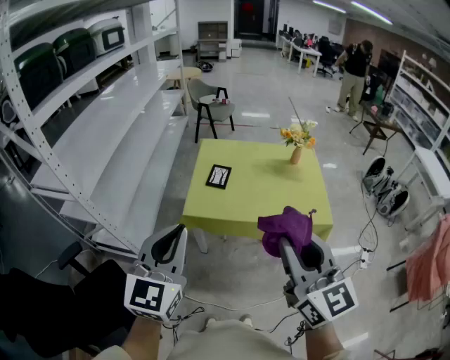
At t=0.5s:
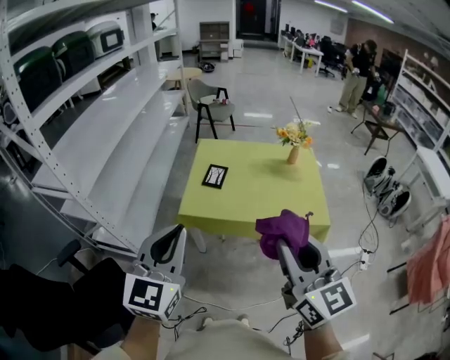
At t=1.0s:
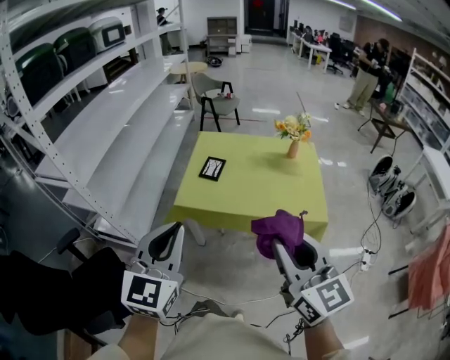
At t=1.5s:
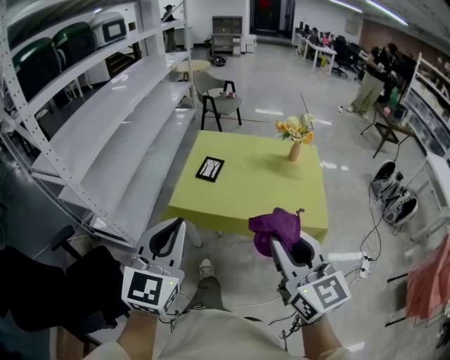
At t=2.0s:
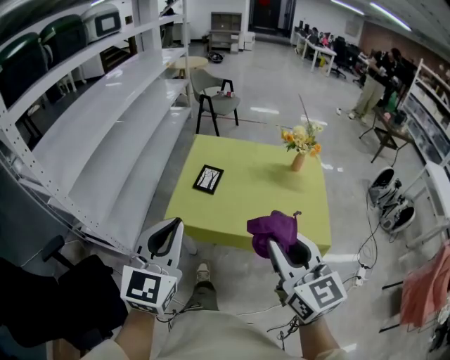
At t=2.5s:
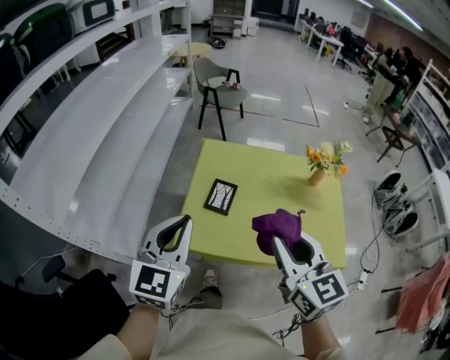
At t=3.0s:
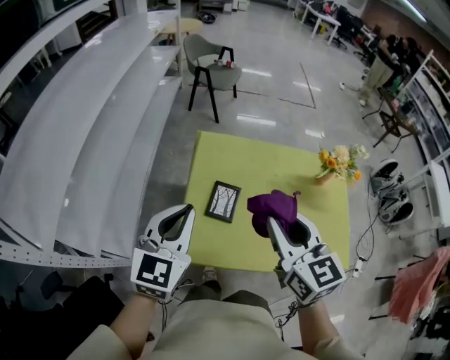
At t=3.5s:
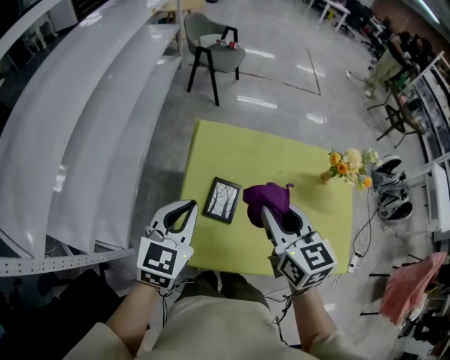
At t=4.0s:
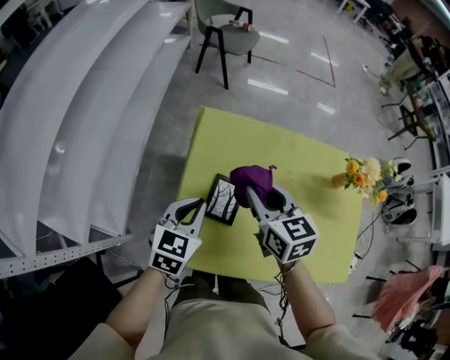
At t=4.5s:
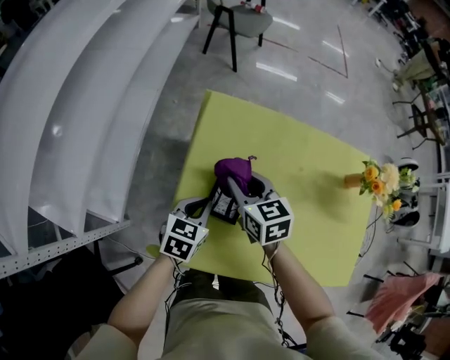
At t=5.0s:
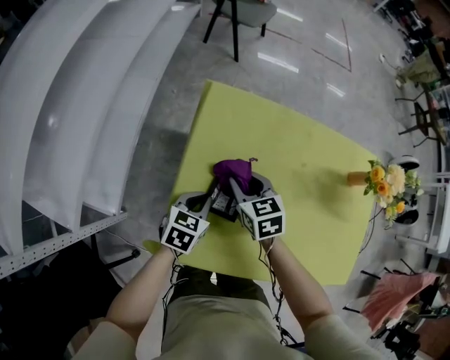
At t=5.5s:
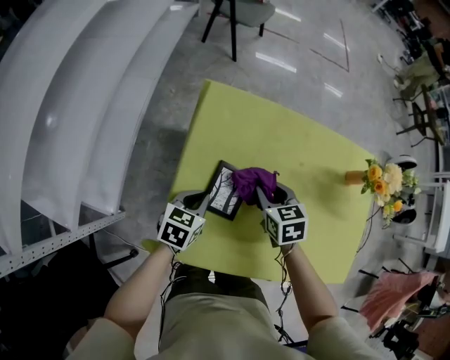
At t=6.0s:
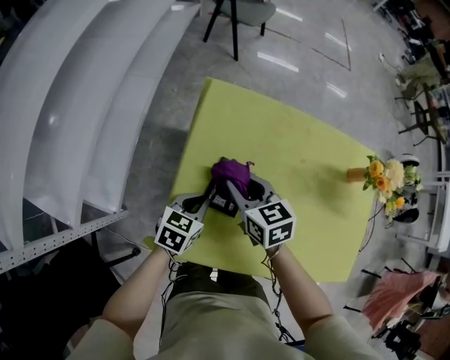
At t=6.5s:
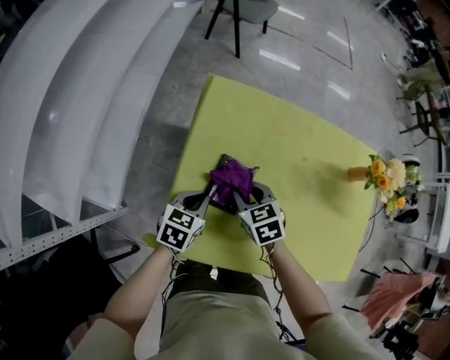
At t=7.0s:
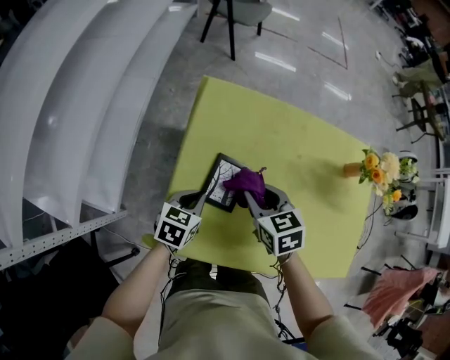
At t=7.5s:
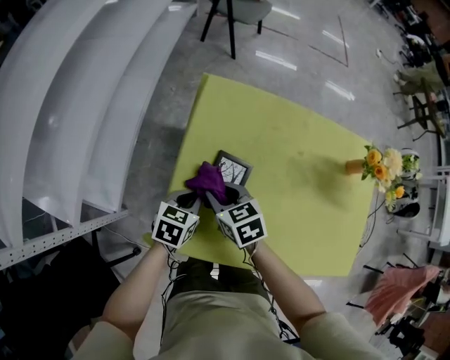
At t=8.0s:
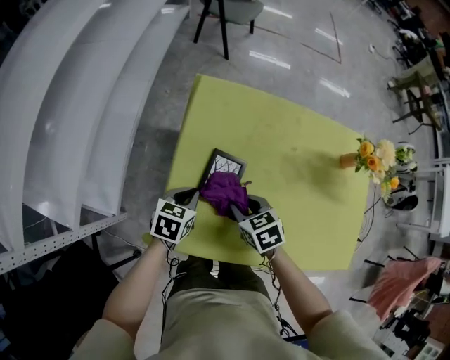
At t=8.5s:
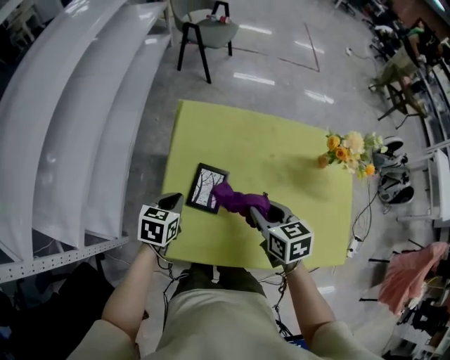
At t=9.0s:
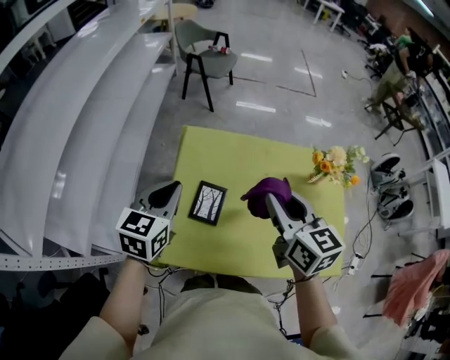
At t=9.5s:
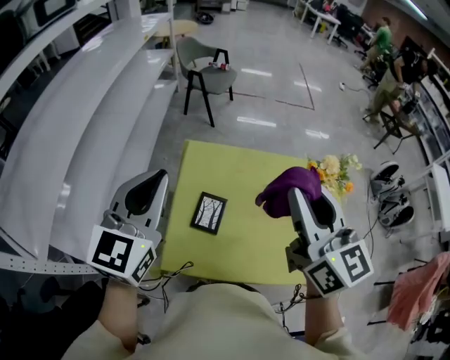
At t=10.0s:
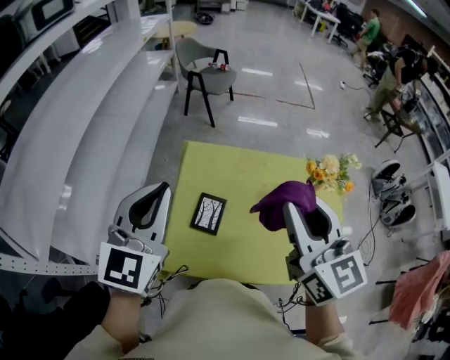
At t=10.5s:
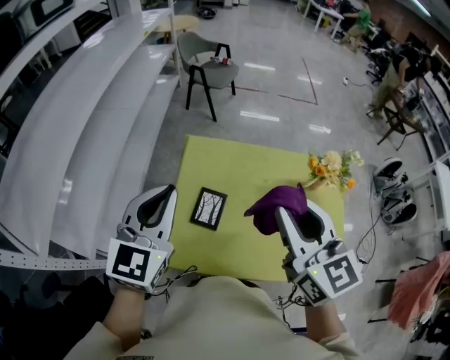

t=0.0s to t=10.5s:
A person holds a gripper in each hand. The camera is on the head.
t=0.0s to t=2.0s: The right gripper goes approximately 15 cm forward, downward and to the right. The left gripper goes approximately 15 cm forward, to the right and downward.
t=2.0s to t=4.0s: The pair of grippers is taken forward, about 50 cm. The grippers both shift downward by about 25 cm. The right gripper swivels about 20 degrees. Meanwhile the left gripper rotates roughly 30 degrees.
t=4.0s to t=6.5s: The right gripper moves up and down over approximately 20 cm, changing direction 2 times, and rotates about 30 degrees; the left gripper shifts about 15 cm downward.
t=6.5s to t=8.5s: The right gripper is displaced upward, to the right and backward by some 15 cm, and turns by about 20 degrees; the left gripper is displaced upward by roughly 5 cm.
t=8.5s to t=10.5s: Both grippers travel together upward, approximately 35 cm. The left gripper angles its fingers upward, by some 40 degrees. The right gripper tips its fingers upward by approximately 30 degrees.

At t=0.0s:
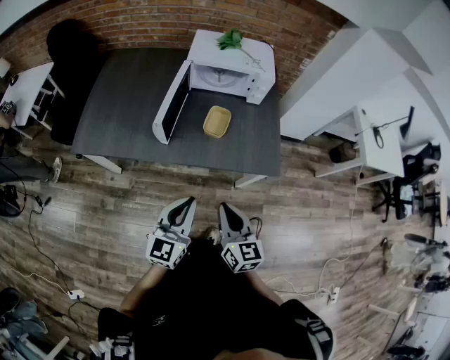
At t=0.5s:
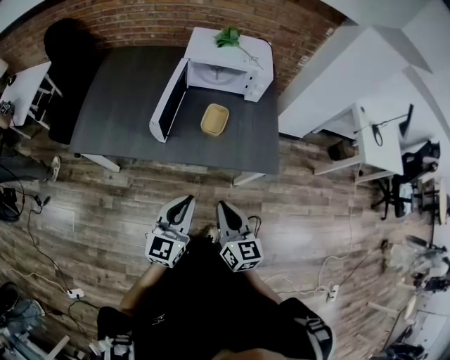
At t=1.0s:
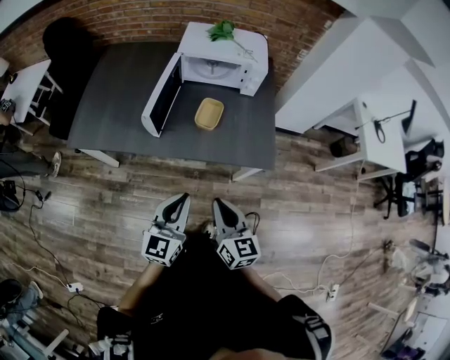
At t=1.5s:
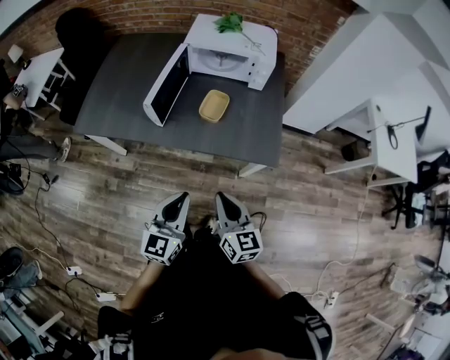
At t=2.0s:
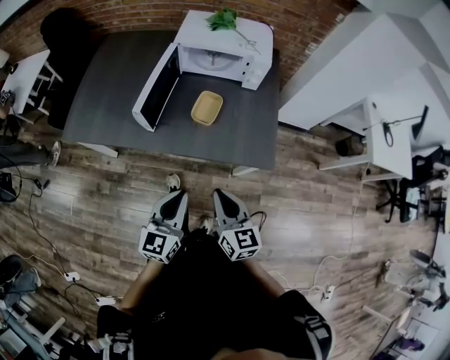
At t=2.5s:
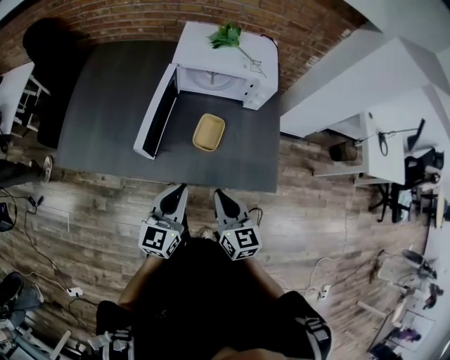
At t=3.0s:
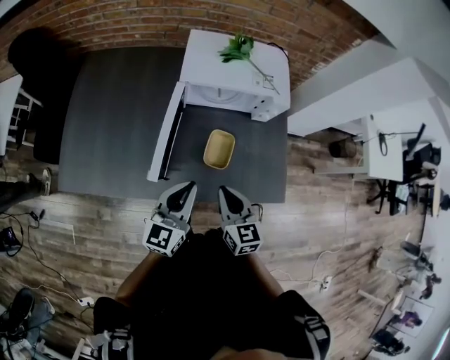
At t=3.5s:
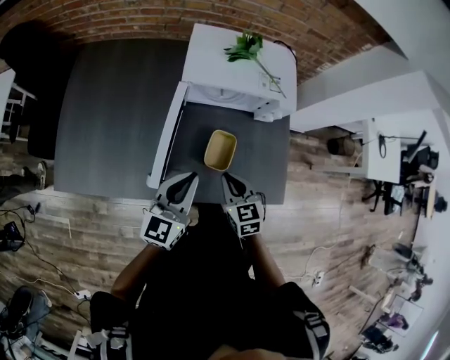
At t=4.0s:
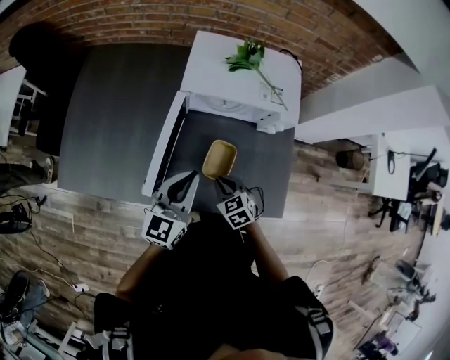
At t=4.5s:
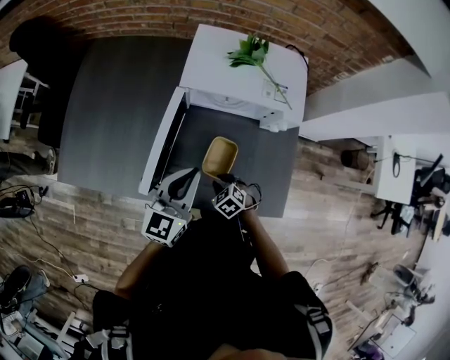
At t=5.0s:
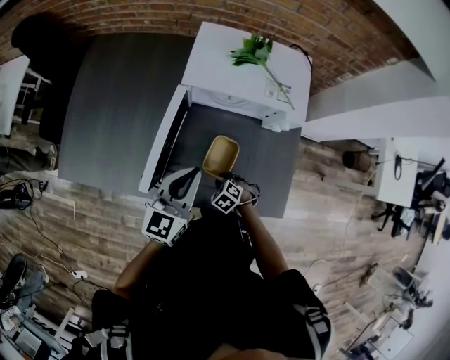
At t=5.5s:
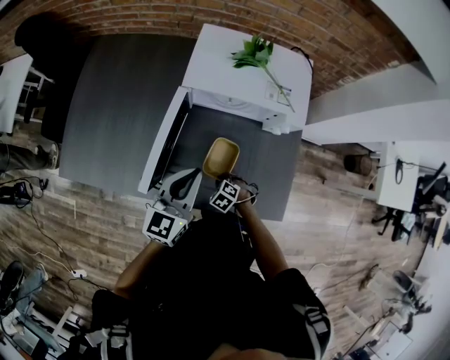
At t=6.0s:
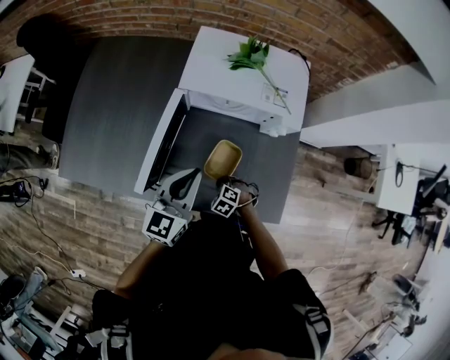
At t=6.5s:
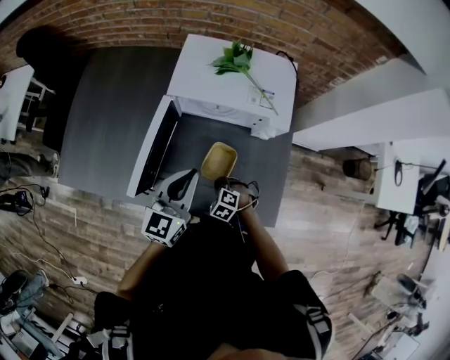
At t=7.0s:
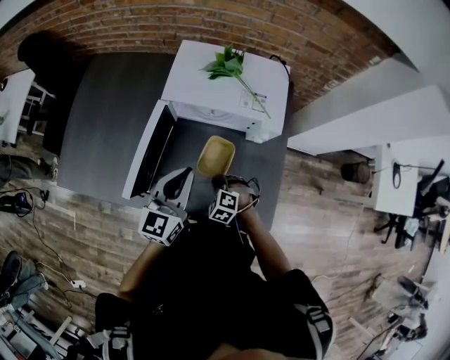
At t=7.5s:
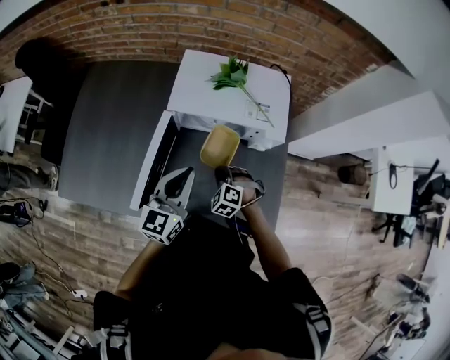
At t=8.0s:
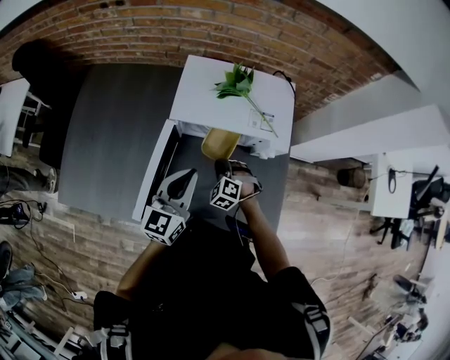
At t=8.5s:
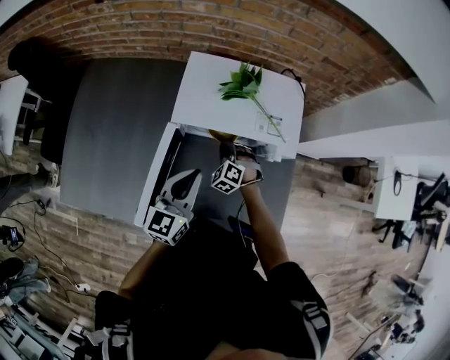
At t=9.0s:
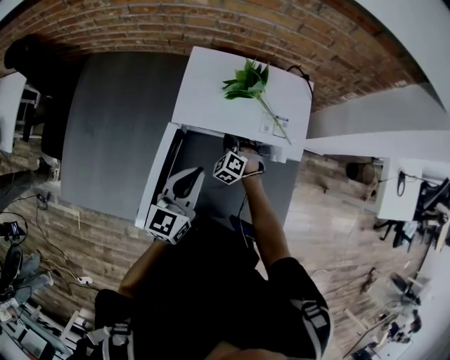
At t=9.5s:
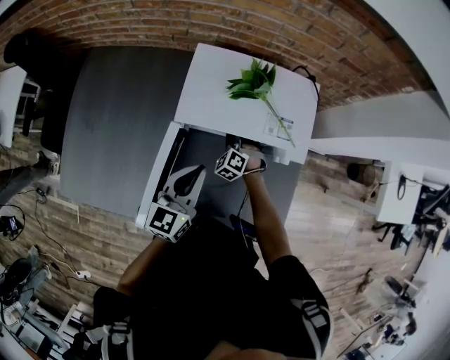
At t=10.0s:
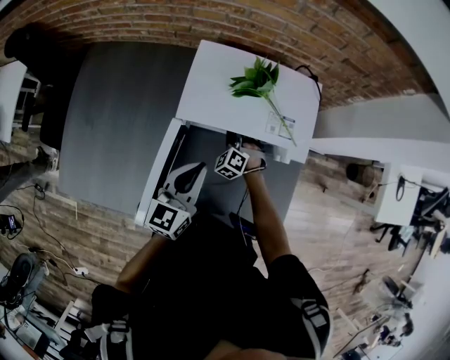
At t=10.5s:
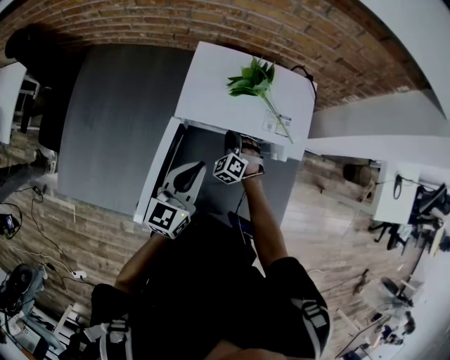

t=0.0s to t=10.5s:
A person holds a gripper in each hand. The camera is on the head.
t=0.0s to t=2.0s: Both grippers travel together to the right, approximately 5 cm.
t=2.0s to t=4.0s: The right gripper travels forward and downward by roughly 35 cm, and tips its fingers downward by about 40 degrees. The left gripper goes roughly 35 cm forward.
t=4.0s to t=6.5s: The left gripper moves roughly 5 cm. Meanwhile the right gripper is displaced downward by about 10 cm, and swivels about 40 degrees.
t=6.5s to t=8.5s: The right gripper shifts approximately 25 cm forward, and turns by roughly 20 degrees. The left gripper shifts about 10 cm forward.

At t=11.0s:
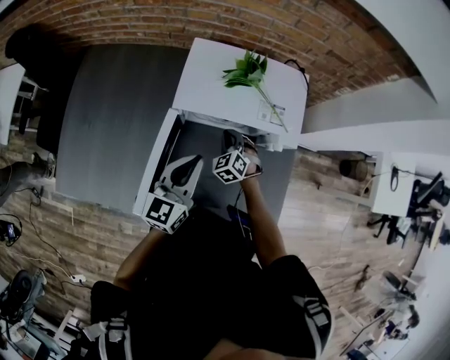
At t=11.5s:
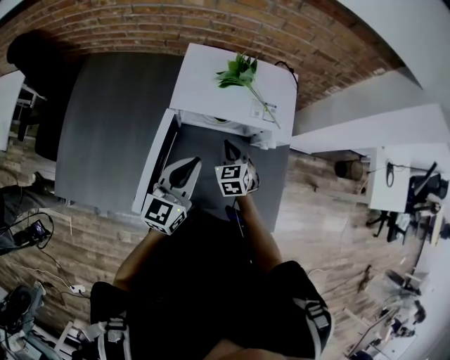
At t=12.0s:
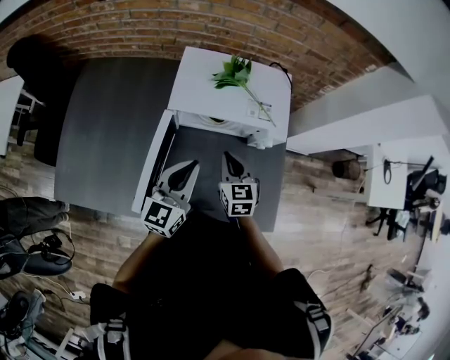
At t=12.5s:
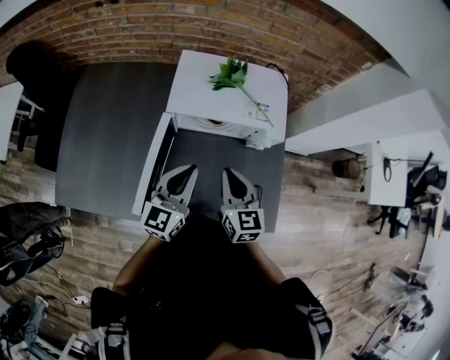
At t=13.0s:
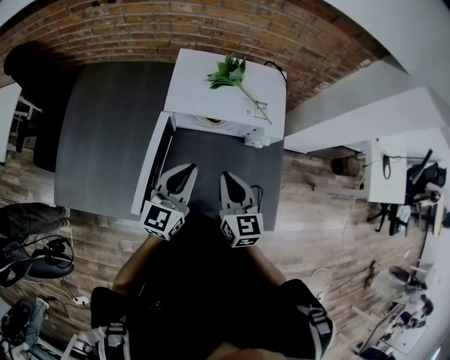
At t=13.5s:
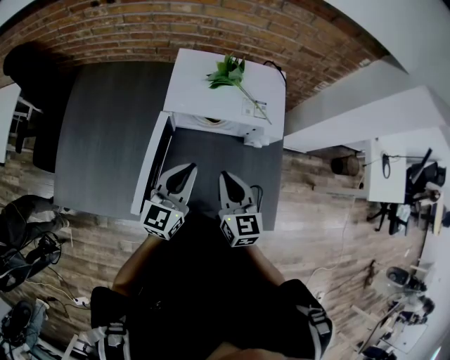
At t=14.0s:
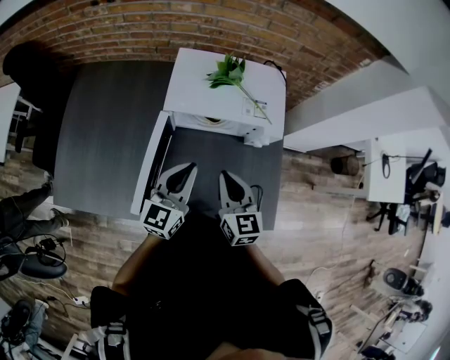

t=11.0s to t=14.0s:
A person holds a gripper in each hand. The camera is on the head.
t=11.0s to t=12.5s: The left gripper changes place by some 5 cm, while the right gripper heads upward and backward, covering about 25 cm, and rotates around the line of its fingers by roughly 50 degrees, clockwise from behind.
t=12.5s to t=14.0s: There are only small adjustments of the grippers.

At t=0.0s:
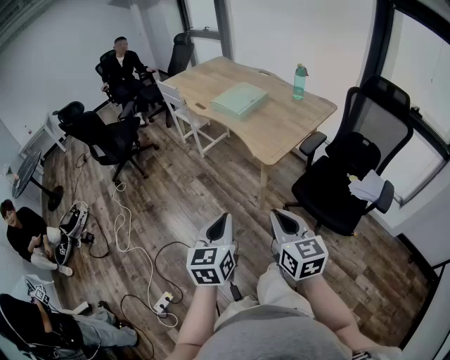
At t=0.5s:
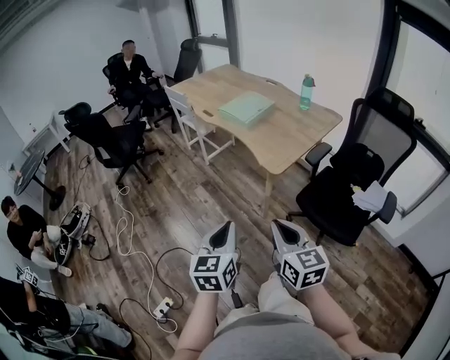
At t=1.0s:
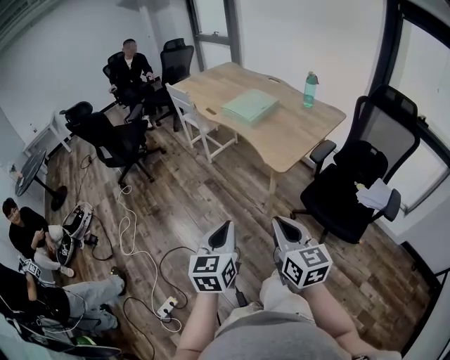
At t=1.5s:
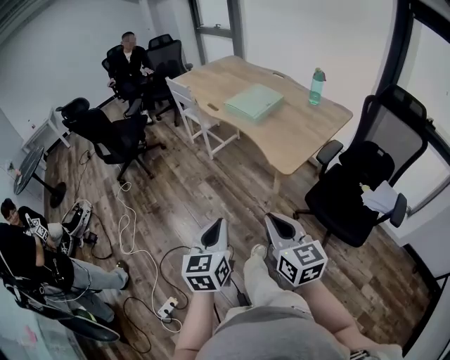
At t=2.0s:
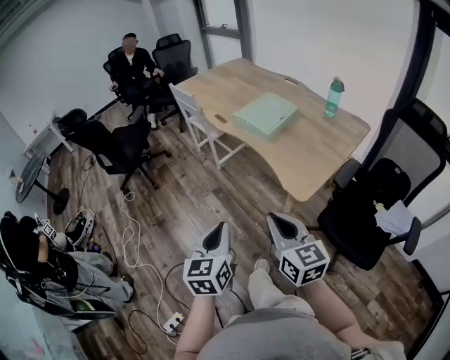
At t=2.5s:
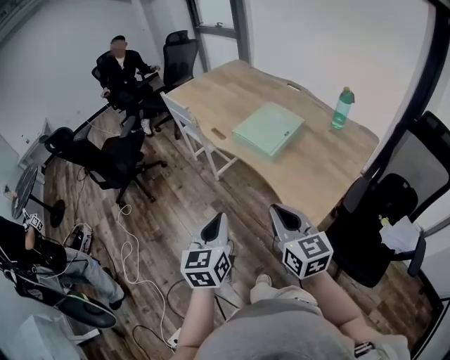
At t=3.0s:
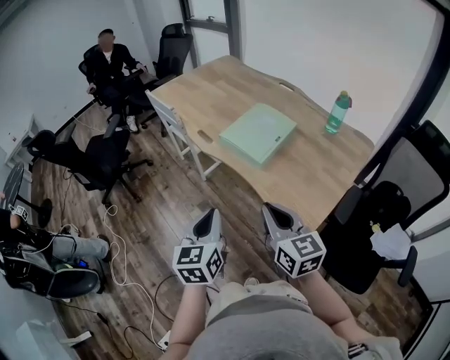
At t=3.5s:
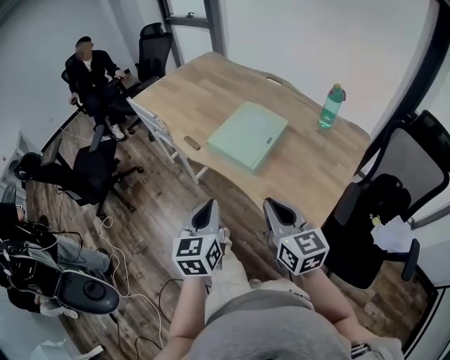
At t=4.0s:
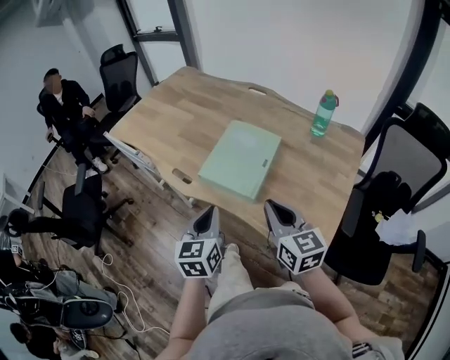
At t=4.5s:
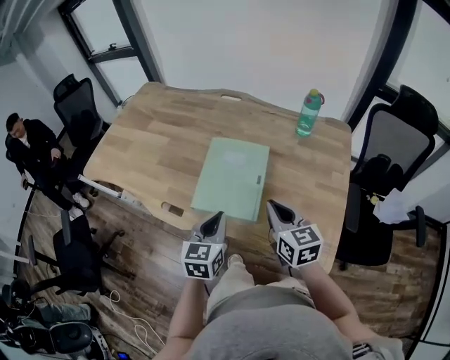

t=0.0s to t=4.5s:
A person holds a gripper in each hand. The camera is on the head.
t=0.0s to t=2.0s: The grippers both shift forward and to the left by some 25 cm.
t=2.0s to t=4.5s: The pair of grippers is taken some 60 cm. The right gripper rotates roughly 30 degrees, while the left gripper changes its angle by roughly 40 degrees.
